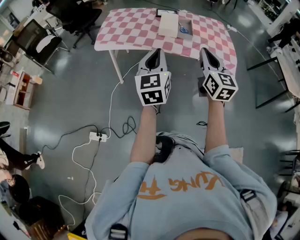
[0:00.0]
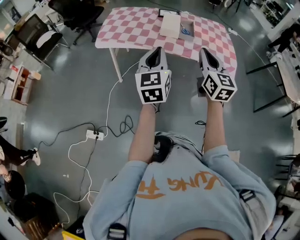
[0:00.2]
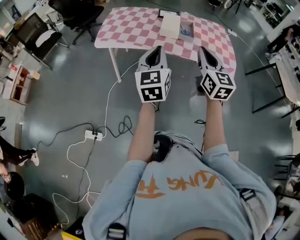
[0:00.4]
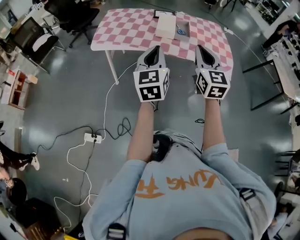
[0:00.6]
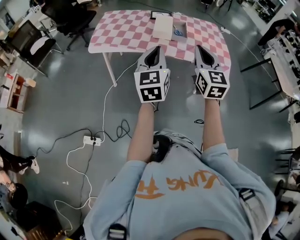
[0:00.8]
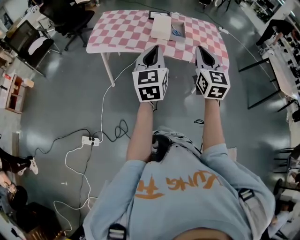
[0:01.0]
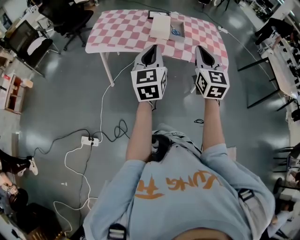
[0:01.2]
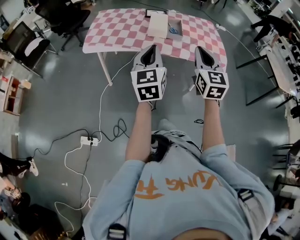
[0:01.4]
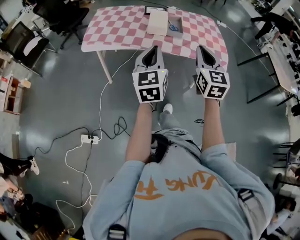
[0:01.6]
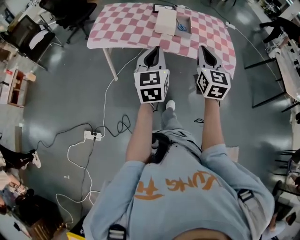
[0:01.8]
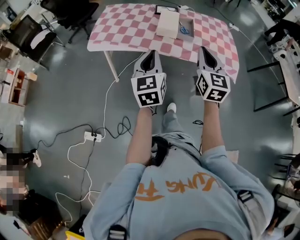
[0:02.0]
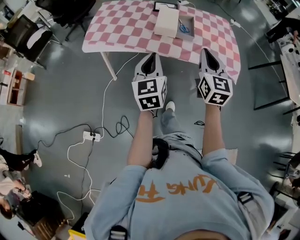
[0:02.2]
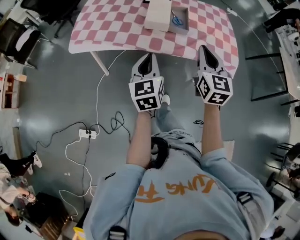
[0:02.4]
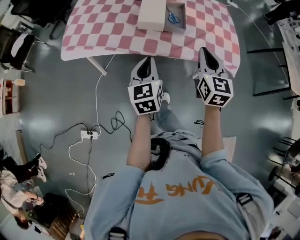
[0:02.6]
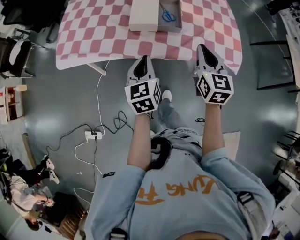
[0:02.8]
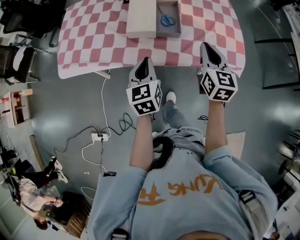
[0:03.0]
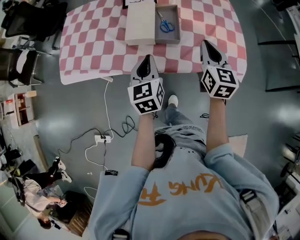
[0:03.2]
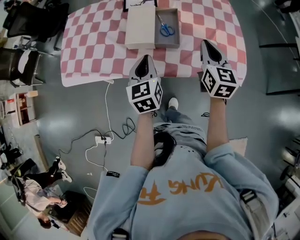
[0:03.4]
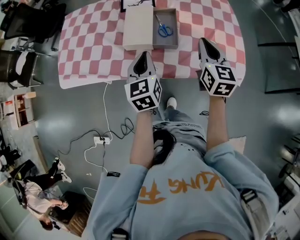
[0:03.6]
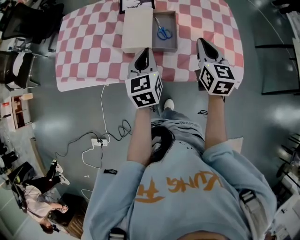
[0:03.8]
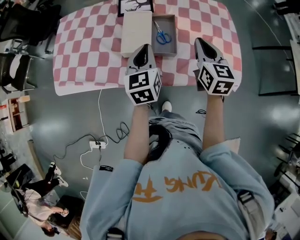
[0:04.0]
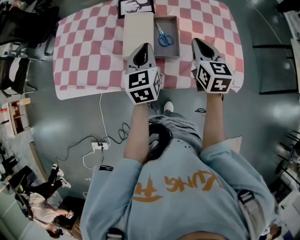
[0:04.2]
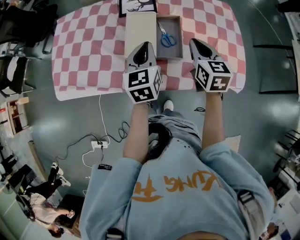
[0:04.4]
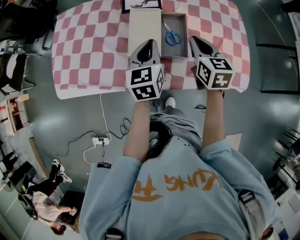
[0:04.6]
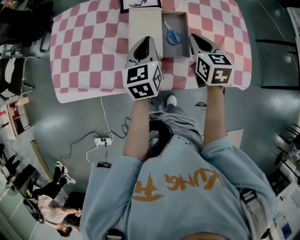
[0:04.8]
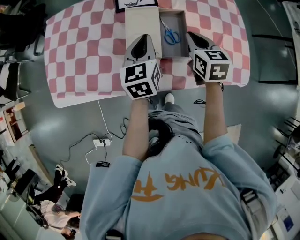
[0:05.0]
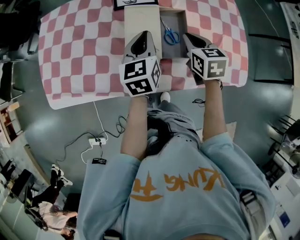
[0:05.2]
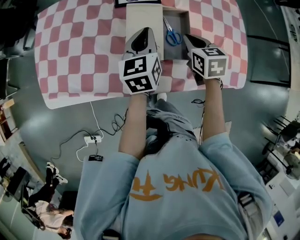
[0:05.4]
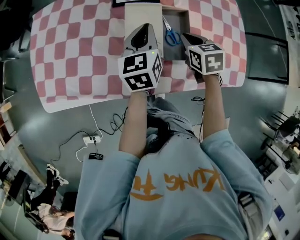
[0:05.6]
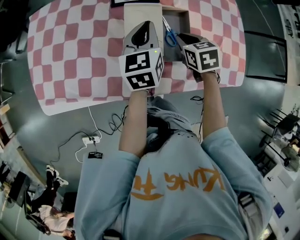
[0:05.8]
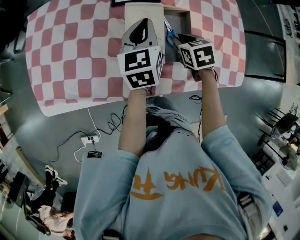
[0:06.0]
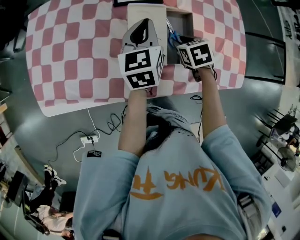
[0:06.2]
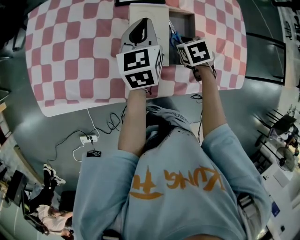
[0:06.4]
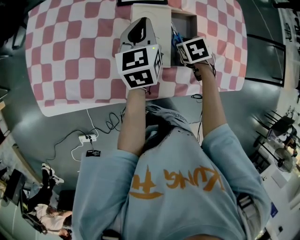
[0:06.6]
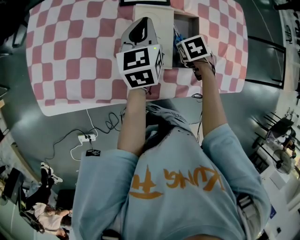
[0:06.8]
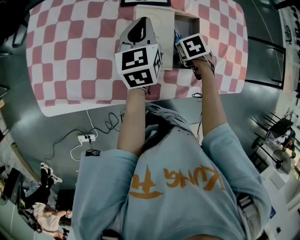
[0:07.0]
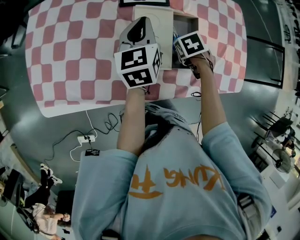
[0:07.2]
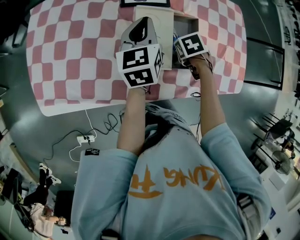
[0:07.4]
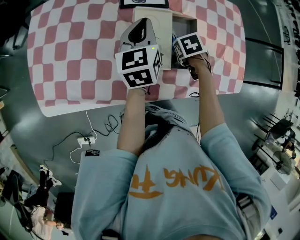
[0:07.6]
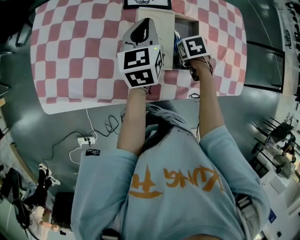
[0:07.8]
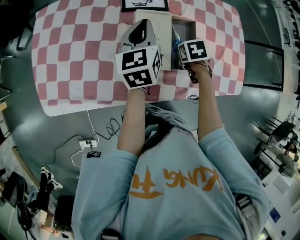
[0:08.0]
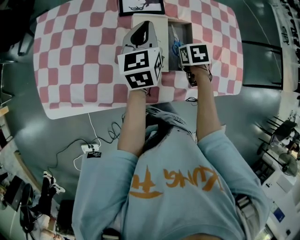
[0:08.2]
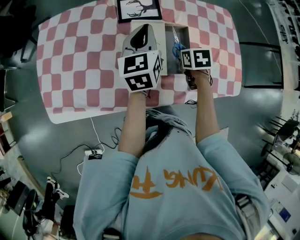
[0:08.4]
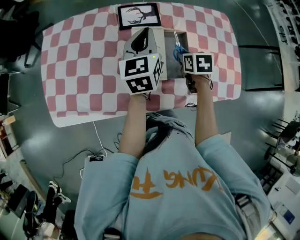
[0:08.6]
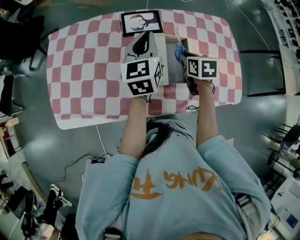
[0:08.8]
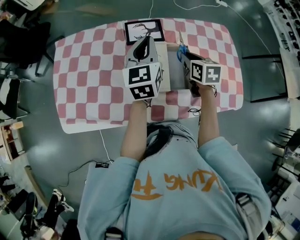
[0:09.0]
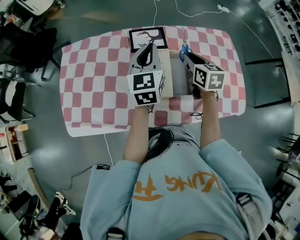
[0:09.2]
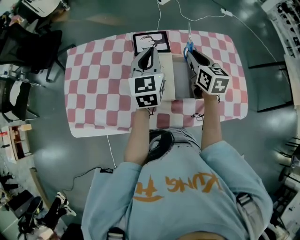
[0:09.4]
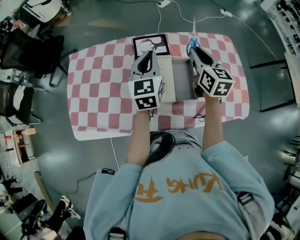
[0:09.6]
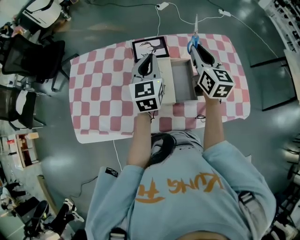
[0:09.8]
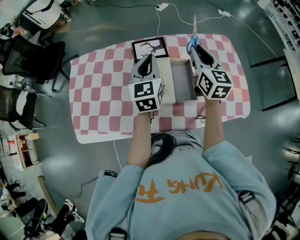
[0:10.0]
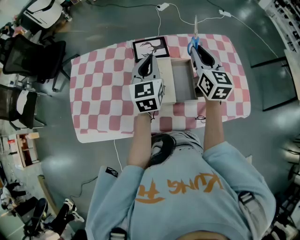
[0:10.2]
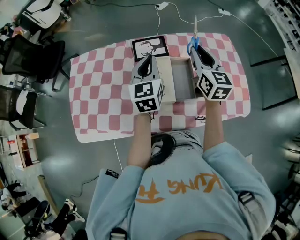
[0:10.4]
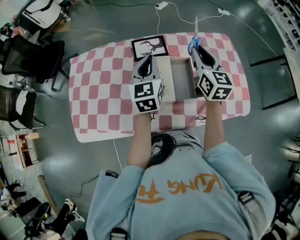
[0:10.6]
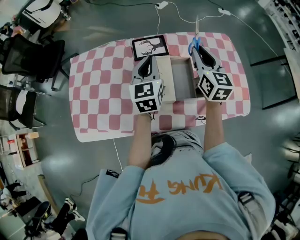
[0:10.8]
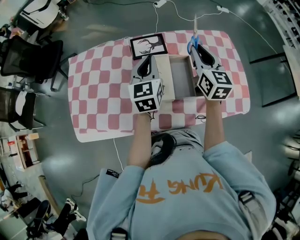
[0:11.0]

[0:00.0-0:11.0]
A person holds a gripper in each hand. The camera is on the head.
0:00.0 to 0:01.6: The grippers move only a little.
0:01.6 to 0:03.2: The left gripper moves forward and downward, some 35 cm, and swivels some 20 degrees; the right gripper travels forward and to the right by roughly 40 cm, and rotates roughly 20 degrees.
0:03.2 to 0:04.8: The left gripper goes roughly 20 cm forward, while the right gripper travels forward and to the left by about 15 cm.
0:04.8 to 0:06.2: The right gripper shifts about 15 cm downward, tilts its fingers some 30 degrees downward, and opens up; the left gripper shifts some 10 cm forward.
0:06.2 to 0:07.8: The grippers stay close to where they were, moving slightly.
0:07.8 to 0:09.4: The right gripper moves upward, some 25 cm, and tips its fingers upward by about 60 degrees; the left gripper travels upward by roughly 10 cm, and rotates some 20 degrees.
0:09.4 to 0:11.0: The right gripper is displaced upward by about 5 cm.

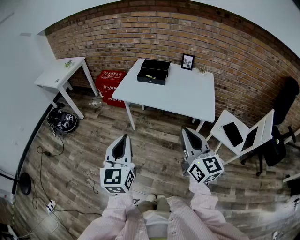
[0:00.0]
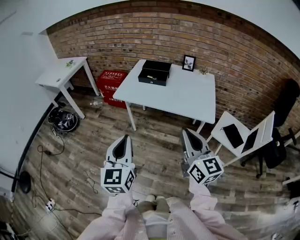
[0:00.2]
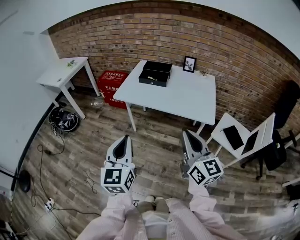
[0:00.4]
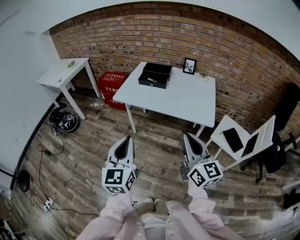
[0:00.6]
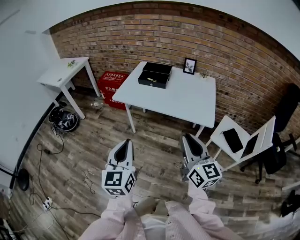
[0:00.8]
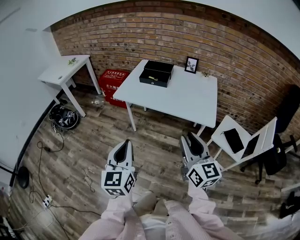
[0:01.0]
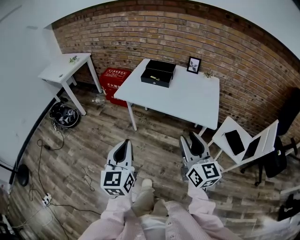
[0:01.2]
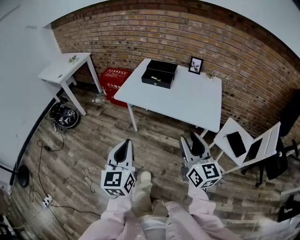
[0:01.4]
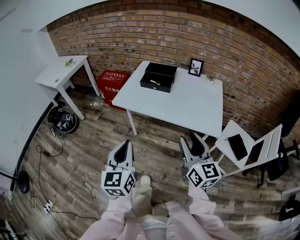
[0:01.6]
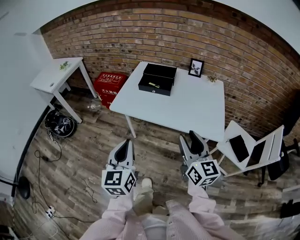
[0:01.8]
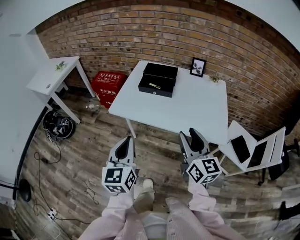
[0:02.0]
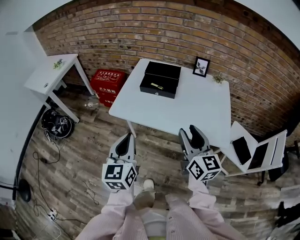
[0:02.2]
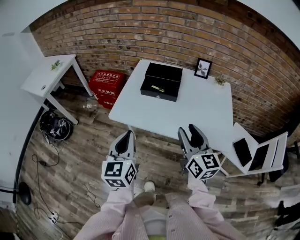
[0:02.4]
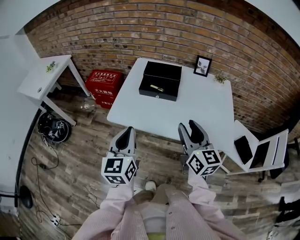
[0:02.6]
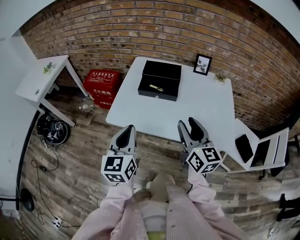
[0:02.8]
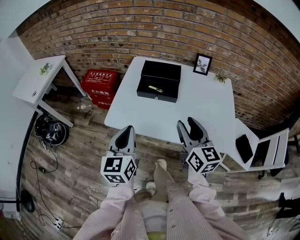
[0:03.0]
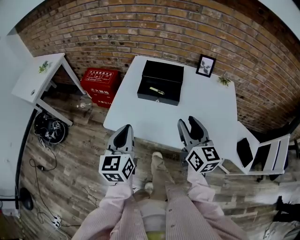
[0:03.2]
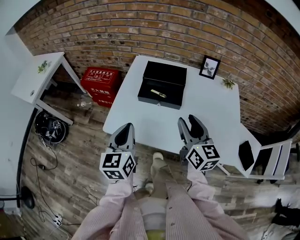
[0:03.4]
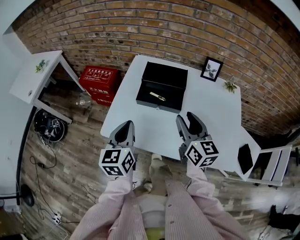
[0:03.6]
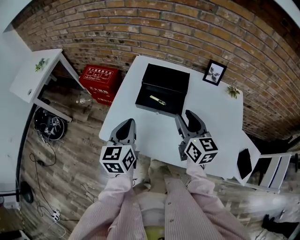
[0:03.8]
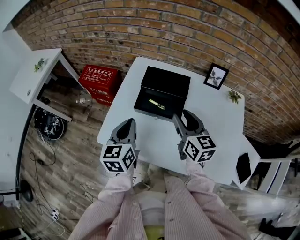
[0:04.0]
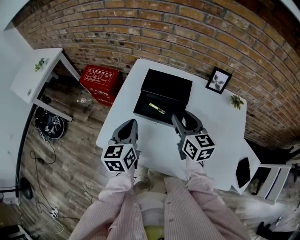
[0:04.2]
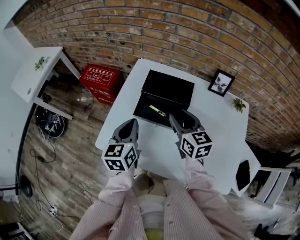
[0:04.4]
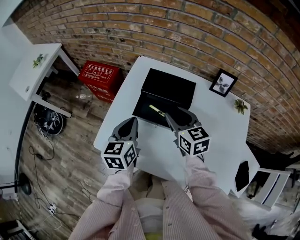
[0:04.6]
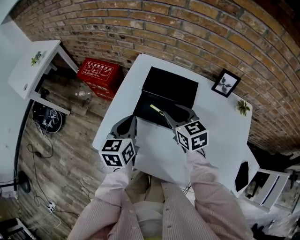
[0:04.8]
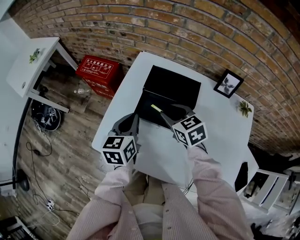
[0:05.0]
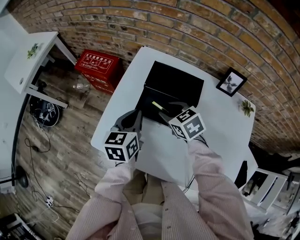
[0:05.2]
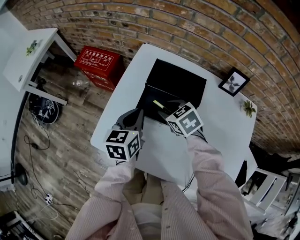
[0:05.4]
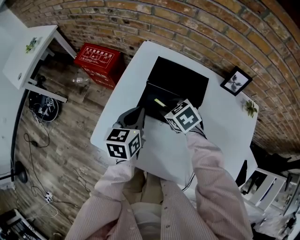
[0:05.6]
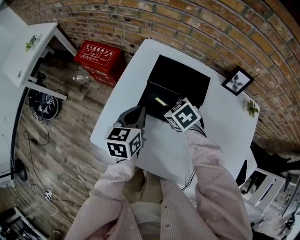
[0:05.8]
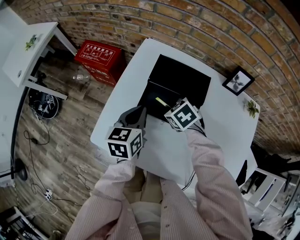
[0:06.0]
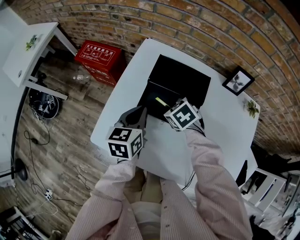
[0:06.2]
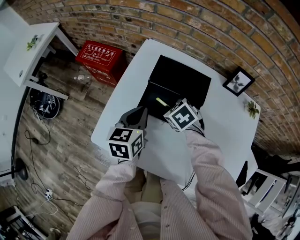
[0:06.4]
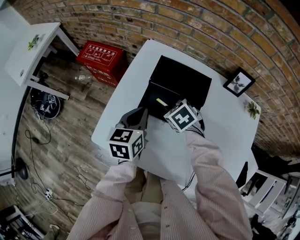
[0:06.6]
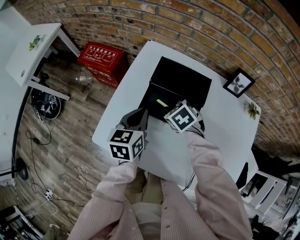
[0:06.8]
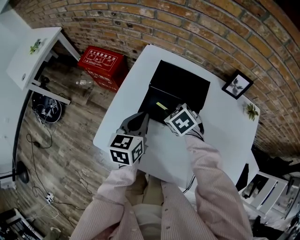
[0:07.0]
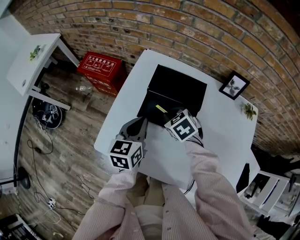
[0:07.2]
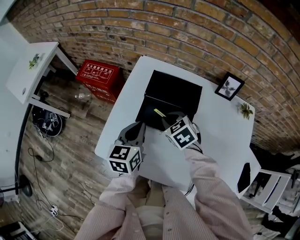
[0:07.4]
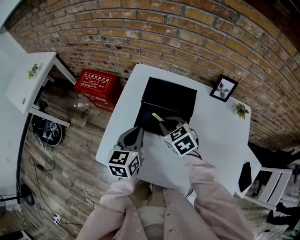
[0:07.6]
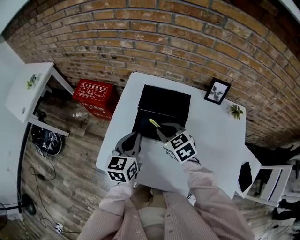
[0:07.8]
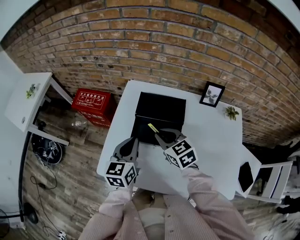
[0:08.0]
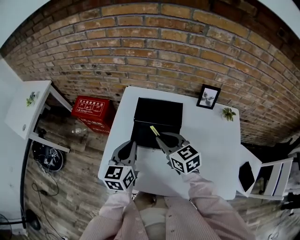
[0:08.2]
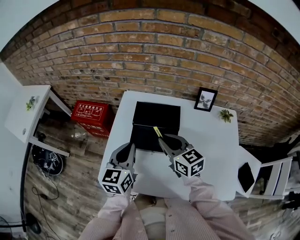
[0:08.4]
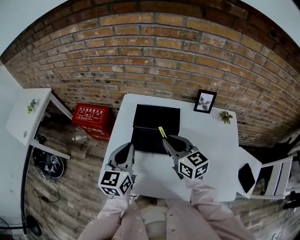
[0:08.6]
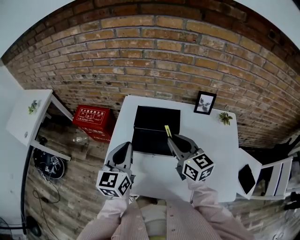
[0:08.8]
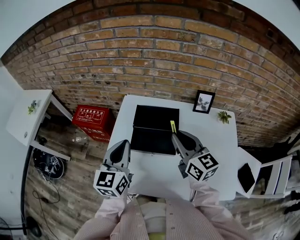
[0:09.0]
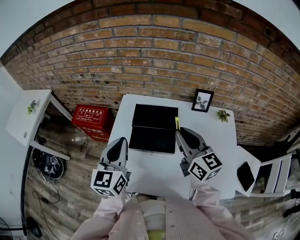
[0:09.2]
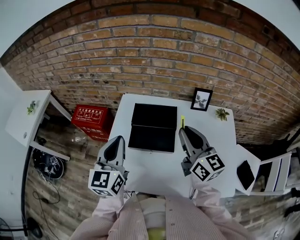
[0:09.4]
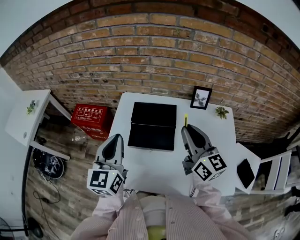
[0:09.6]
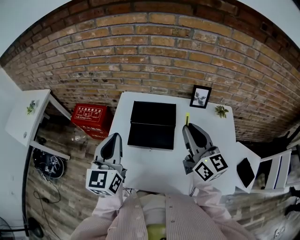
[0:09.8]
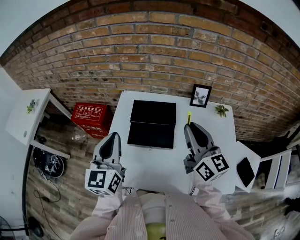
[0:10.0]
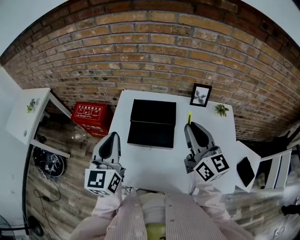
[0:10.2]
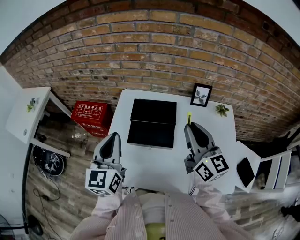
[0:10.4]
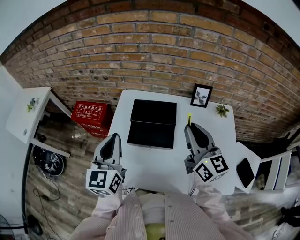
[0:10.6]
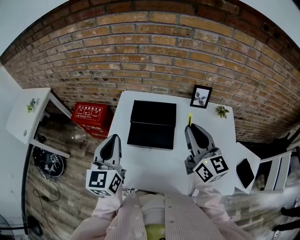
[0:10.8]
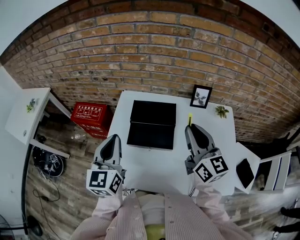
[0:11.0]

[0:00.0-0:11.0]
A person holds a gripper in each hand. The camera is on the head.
0:00.0 to 0:01.6: Both grippers move forward, some 10 cm. The right gripper opens its fingers.
0:01.6 to 0:03.2: Both grippers move forward, approximately 30 cm.
0:03.2 to 0:04.8: The left gripper heads forward, covering approximately 20 cm. The right gripper heads forward and downward, covering roughly 30 cm, and swivels some 40 degrees.
0:04.8 to 0:06.2: The left gripper shifts by approximately 5 cm. The right gripper heads downward, covering approximately 10 cm, and tips its fingers downward by about 30 degrees.
0:06.2 to 0:07.8: The left gripper changes place by roughly 5 cm; the right gripper heads upward, covering roughly 10 cm, and rotates some 30 degrees.
0:07.8 to 0:09.4: The left gripper heads upward, covering approximately 15 cm. The right gripper travels upward and to the right by roughly 20 cm, and angles its fingers upward, by some 40 degrees.
0:09.4 to 0:11.0: The grippers make only small movements.

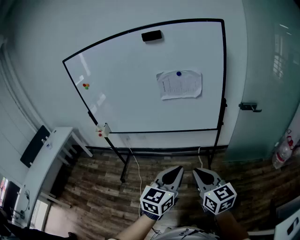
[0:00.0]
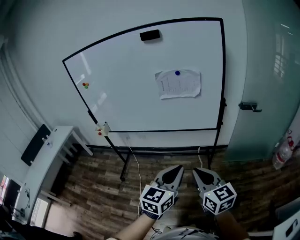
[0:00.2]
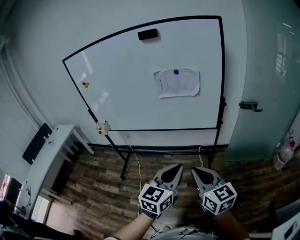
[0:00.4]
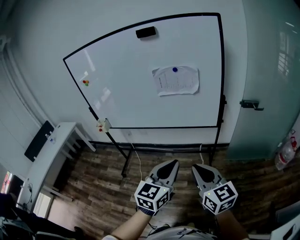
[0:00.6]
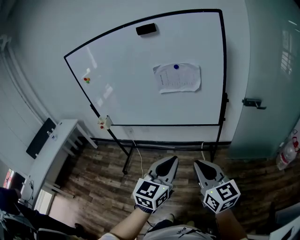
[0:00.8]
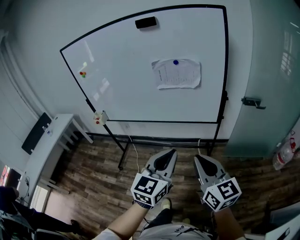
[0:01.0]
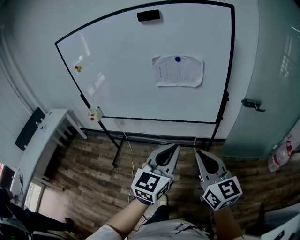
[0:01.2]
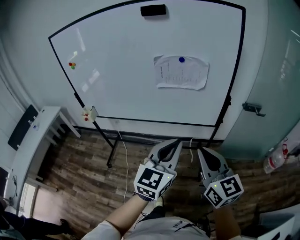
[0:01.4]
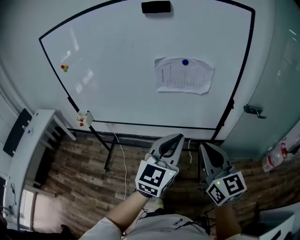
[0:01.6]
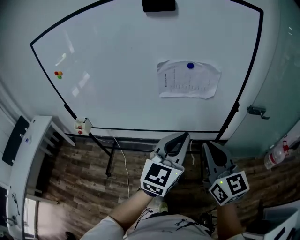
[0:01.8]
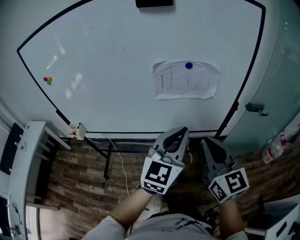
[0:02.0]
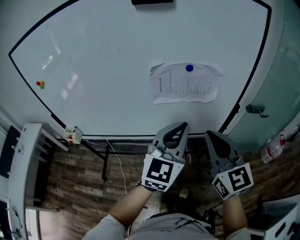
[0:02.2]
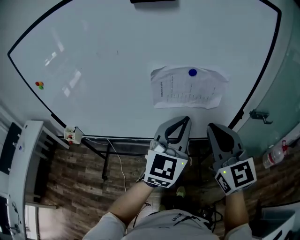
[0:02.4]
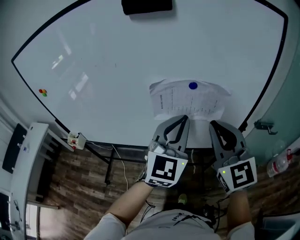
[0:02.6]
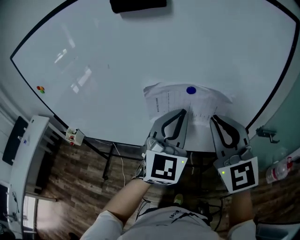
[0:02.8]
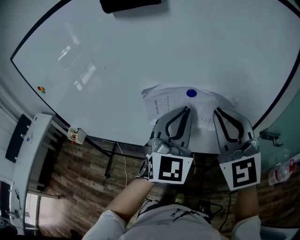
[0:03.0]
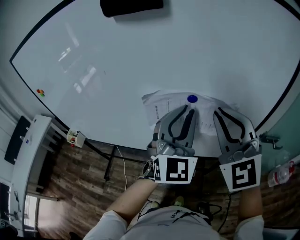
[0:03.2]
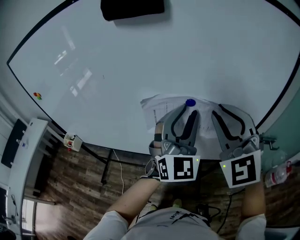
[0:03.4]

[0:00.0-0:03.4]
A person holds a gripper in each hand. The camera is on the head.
0:00.0 to 0:01.6: The right gripper moves forward and upward, roughly 20 cm; the left gripper goes about 20 cm forward.
0:01.6 to 0:03.4: Both grippers move forward, roughly 30 cm. The right gripper rotates around the line of its fingers by approximately 50 degrees, counterclockwise from behind. Meanwhile the left gripper turns by roughly 40 degrees, and opens up.
